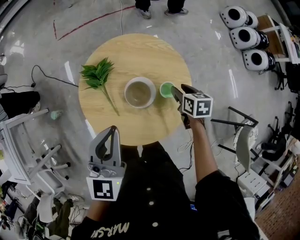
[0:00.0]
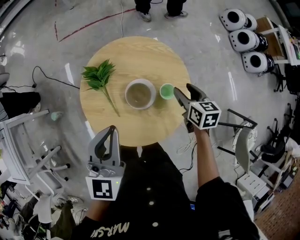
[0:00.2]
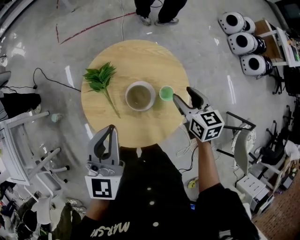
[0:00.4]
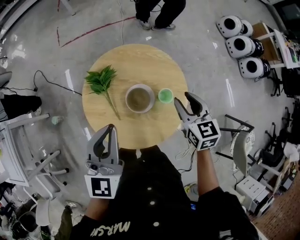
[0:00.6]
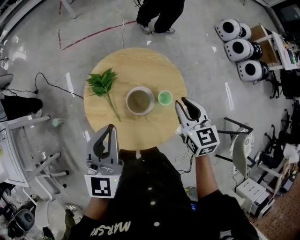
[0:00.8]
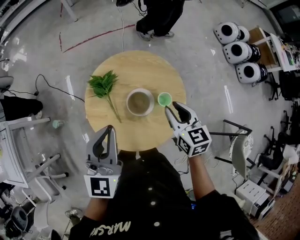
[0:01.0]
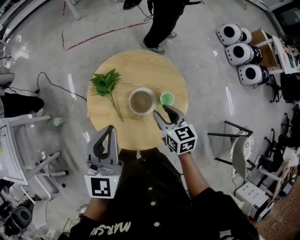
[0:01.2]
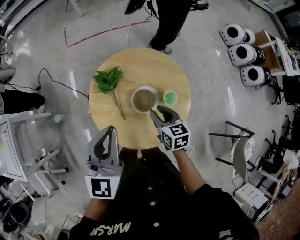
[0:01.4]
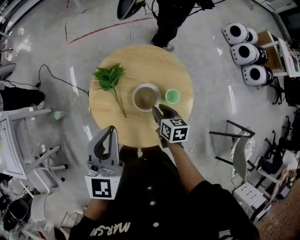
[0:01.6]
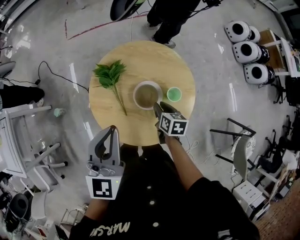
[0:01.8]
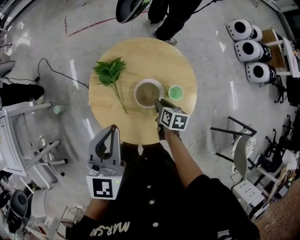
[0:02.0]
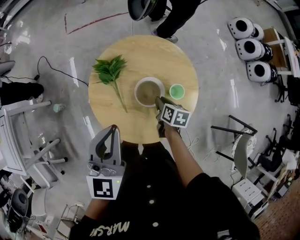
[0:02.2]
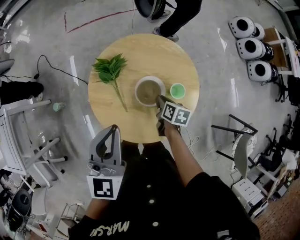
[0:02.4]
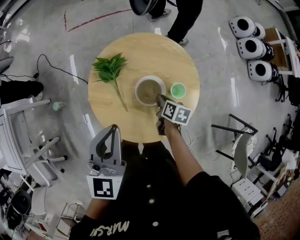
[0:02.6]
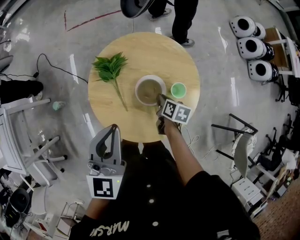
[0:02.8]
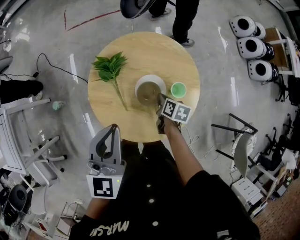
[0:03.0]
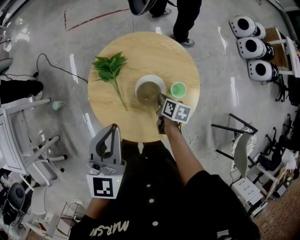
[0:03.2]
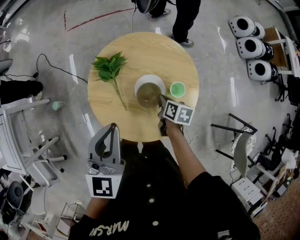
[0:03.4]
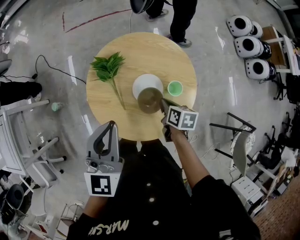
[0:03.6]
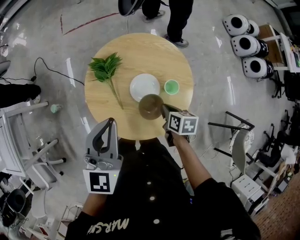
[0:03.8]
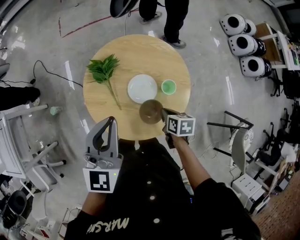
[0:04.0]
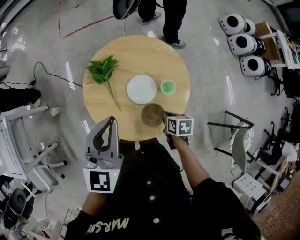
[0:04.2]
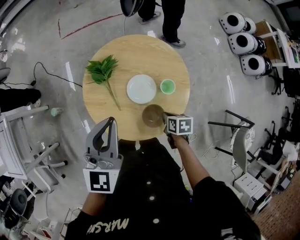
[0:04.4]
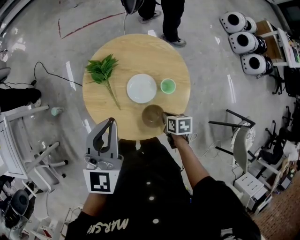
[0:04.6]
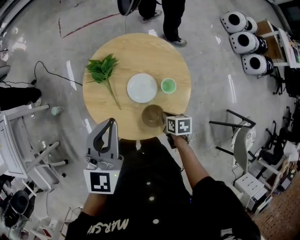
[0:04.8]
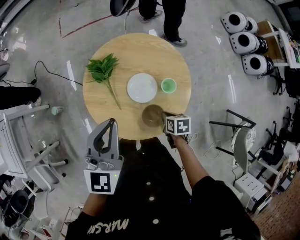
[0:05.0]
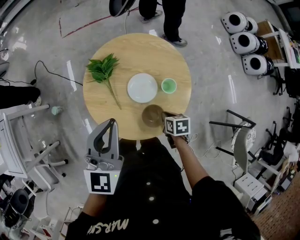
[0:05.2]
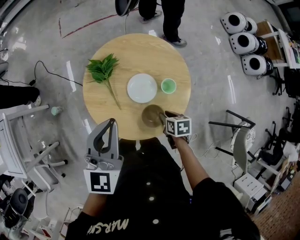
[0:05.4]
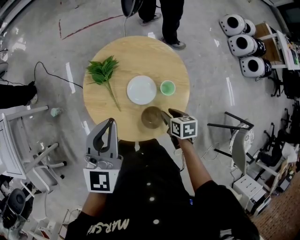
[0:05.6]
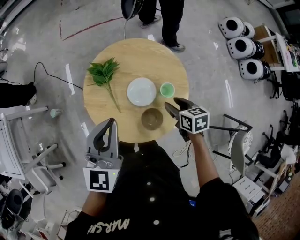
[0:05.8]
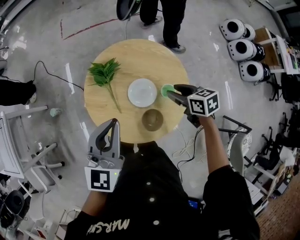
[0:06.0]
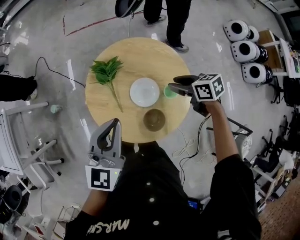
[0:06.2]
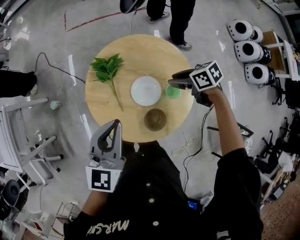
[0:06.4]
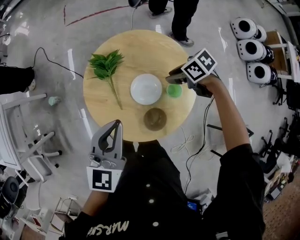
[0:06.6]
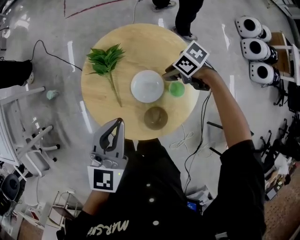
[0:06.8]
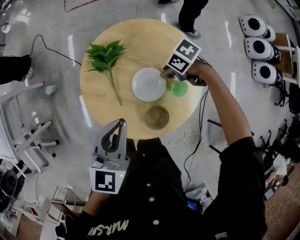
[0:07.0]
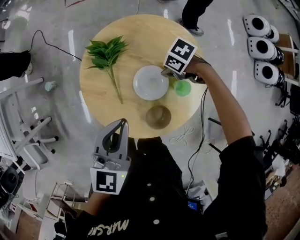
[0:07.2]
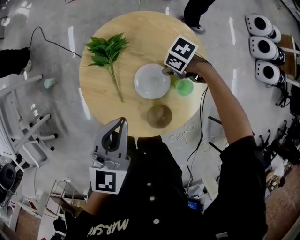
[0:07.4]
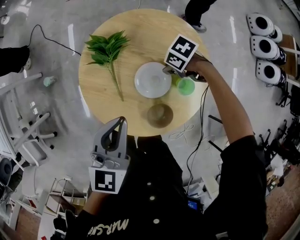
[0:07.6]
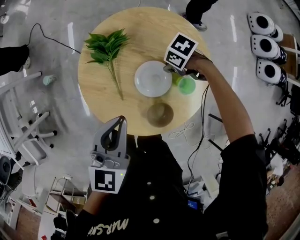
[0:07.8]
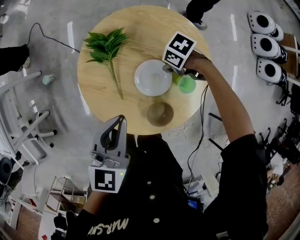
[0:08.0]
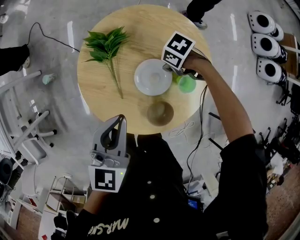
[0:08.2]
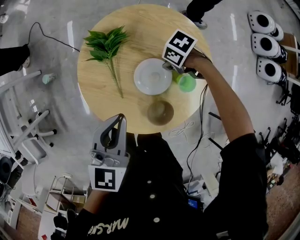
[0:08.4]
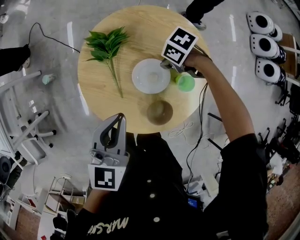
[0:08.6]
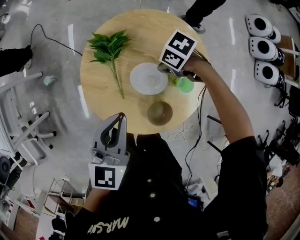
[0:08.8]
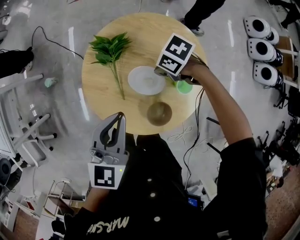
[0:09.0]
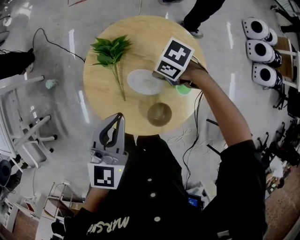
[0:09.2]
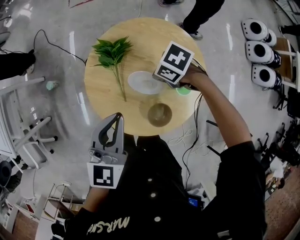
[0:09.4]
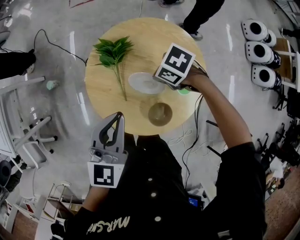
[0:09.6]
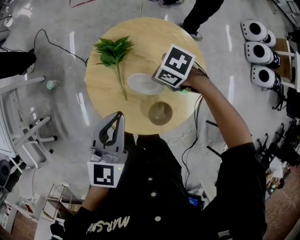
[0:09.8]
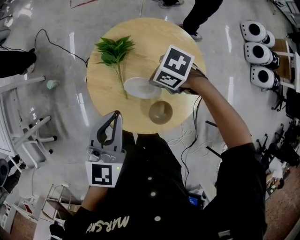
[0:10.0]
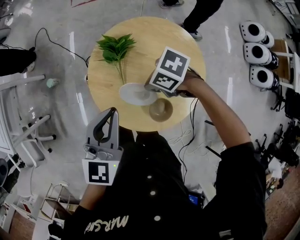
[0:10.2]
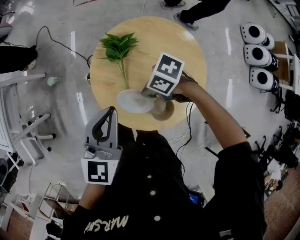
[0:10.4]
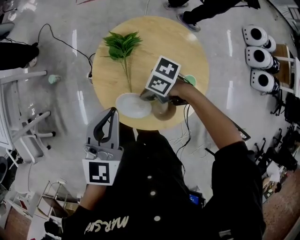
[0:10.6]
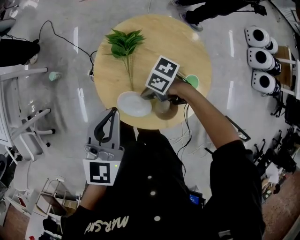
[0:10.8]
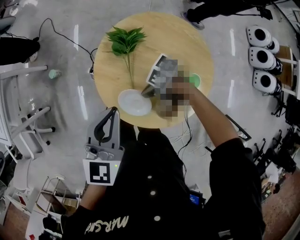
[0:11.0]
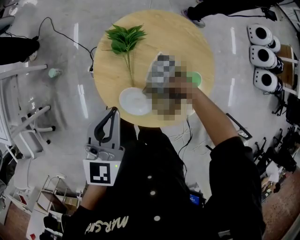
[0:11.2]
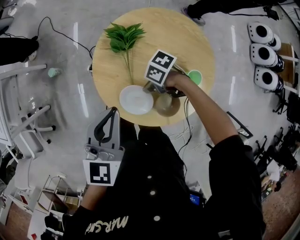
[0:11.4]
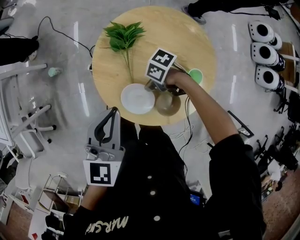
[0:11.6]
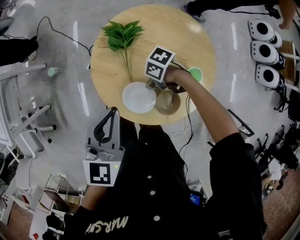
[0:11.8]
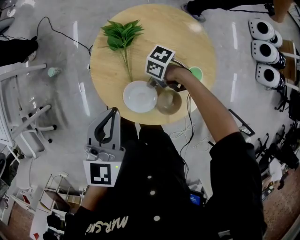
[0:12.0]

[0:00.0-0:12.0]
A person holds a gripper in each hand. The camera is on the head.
0:00.0 to 0:01.6: The left gripper ends up approximately 5 cm from where it was. Meanwhile the right gripper heads to the left and backward, covering some 15 cm, and reaches approximately 20 cm upward, then returns.
0:01.6 to 0:03.0: The right gripper travels downward by about 10 cm, swivels approximately 20 degrees, and closes up.
0:03.0 to 0:04.4: The right gripper shifts approximately 10 cm backward.
0:04.4 to 0:06.0: The right gripper shifts approximately 20 cm upward and forward, rotates about 30 degrees, and opens its fingers.
0:06.0 to 0:07.6: The right gripper goes about 20 cm downward, and rotates about 60 degrees; the left gripper is displaced downward by approximately 10 cm.
0:07.6 to 0:09.0: The right gripper shifts about 5 cm upward, and closes its fingers.
0:09.0 to 0:10.4: The left gripper shifts by about 5 cm. Meanwhile the right gripper shifts by some 15 cm.
0:10.4 to 0:12.0: The right gripper goes some 10 cm downward.

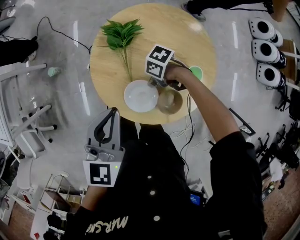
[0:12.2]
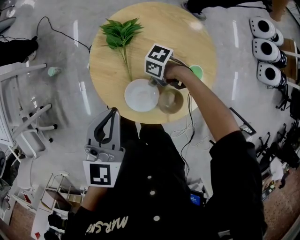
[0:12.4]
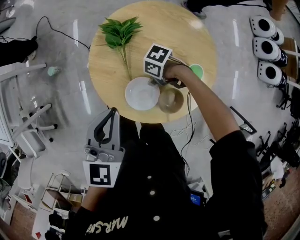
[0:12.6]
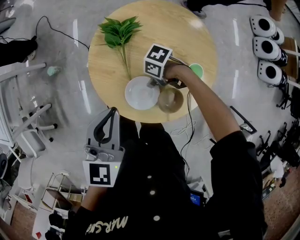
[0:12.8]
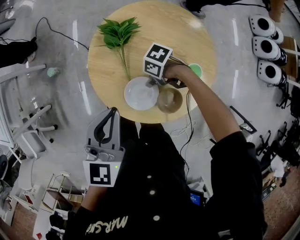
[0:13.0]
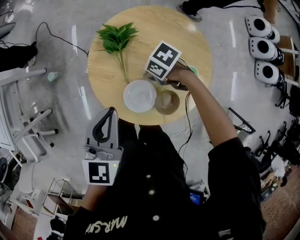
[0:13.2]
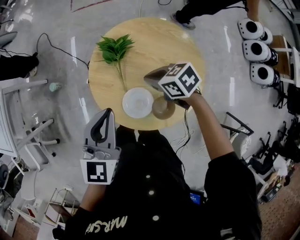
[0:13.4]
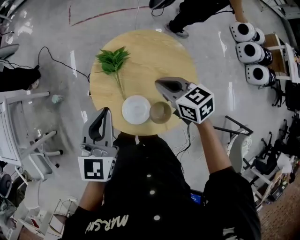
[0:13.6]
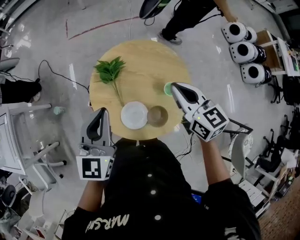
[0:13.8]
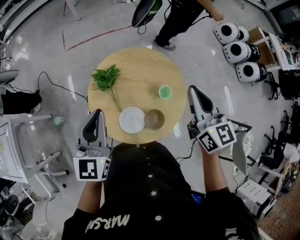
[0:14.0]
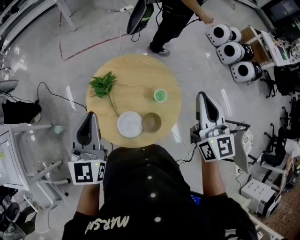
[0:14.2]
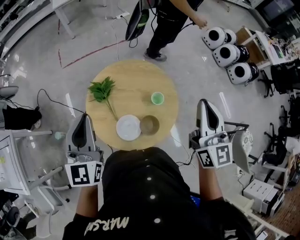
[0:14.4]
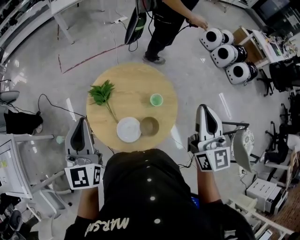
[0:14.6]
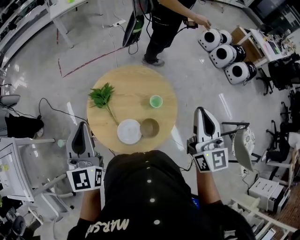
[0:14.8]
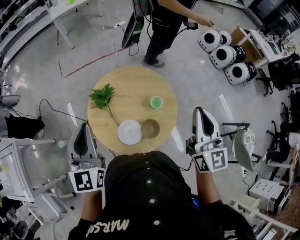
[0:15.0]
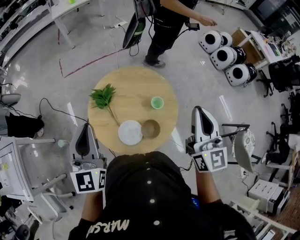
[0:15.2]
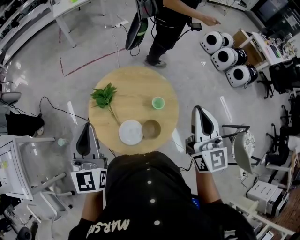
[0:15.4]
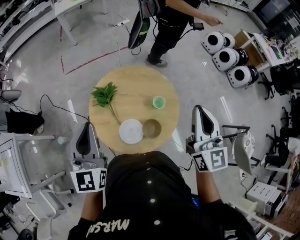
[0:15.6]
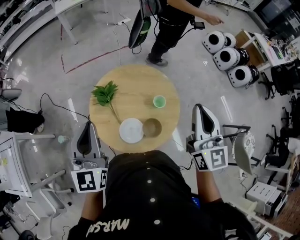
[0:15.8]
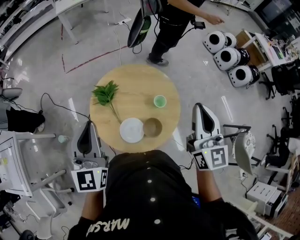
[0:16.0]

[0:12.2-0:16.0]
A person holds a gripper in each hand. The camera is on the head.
0:12.2 to 0:13.4: The right gripper travels upward by some 15 cm, turns by approximately 40 degrees, and opens, then closes once more.
0:13.4 to 0:14.8: The left gripper is displaced upward by roughly 15 cm, and changes its angle by about 20 degrees, while the right gripper goes approximately 30 cm upward, and points its fingers about 50 degrees further upward.
0:14.8 to 0:16.0: The grippers make only small movements.

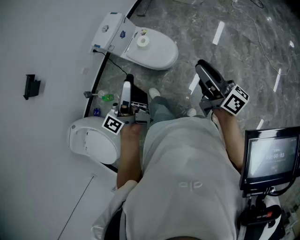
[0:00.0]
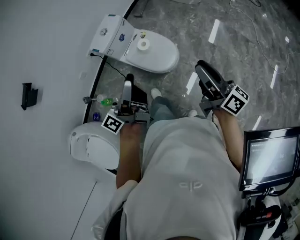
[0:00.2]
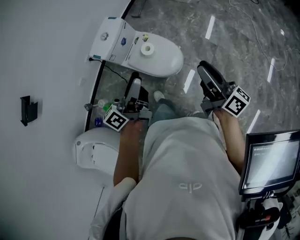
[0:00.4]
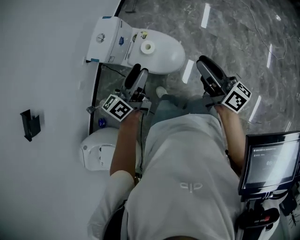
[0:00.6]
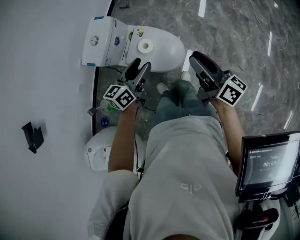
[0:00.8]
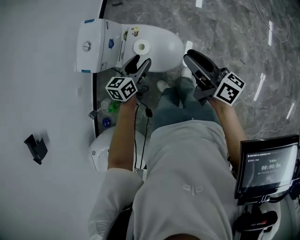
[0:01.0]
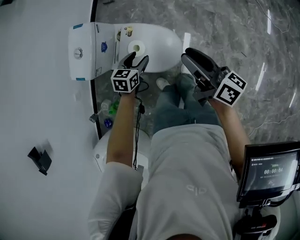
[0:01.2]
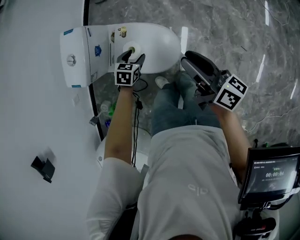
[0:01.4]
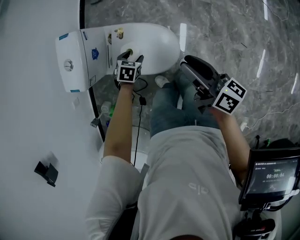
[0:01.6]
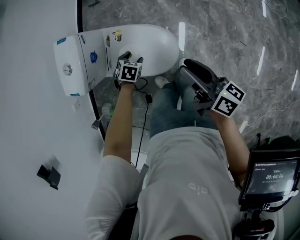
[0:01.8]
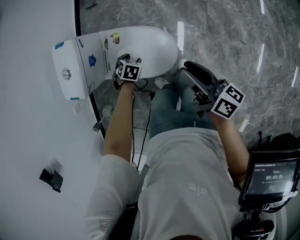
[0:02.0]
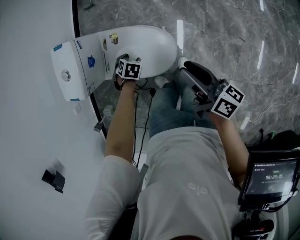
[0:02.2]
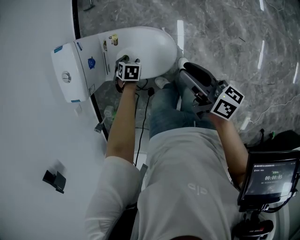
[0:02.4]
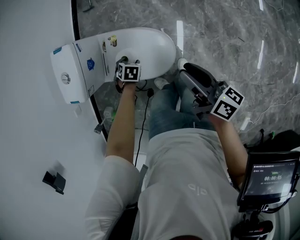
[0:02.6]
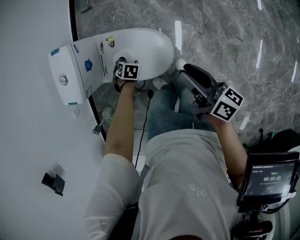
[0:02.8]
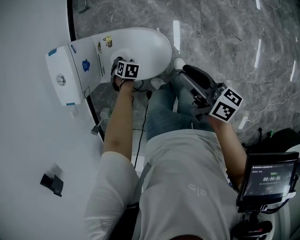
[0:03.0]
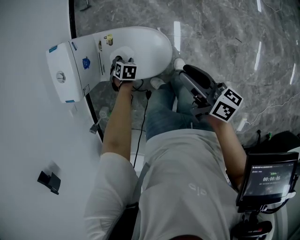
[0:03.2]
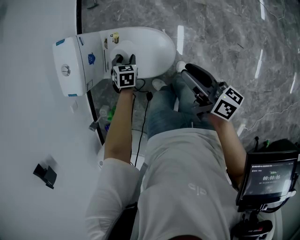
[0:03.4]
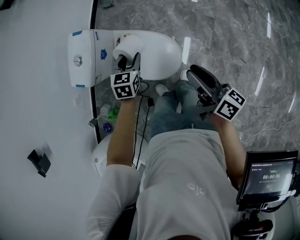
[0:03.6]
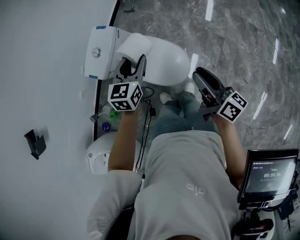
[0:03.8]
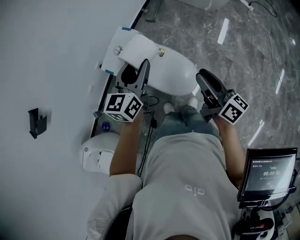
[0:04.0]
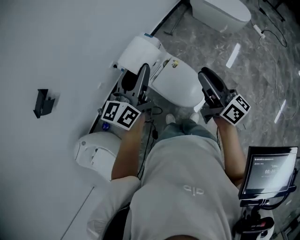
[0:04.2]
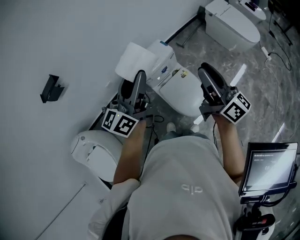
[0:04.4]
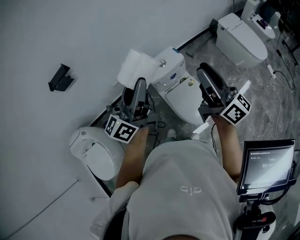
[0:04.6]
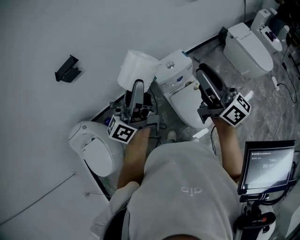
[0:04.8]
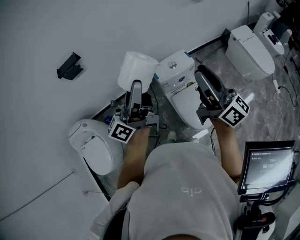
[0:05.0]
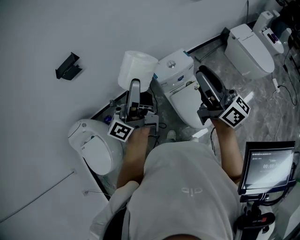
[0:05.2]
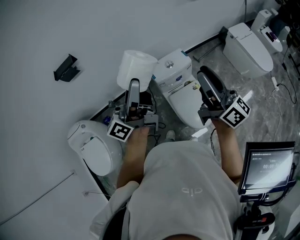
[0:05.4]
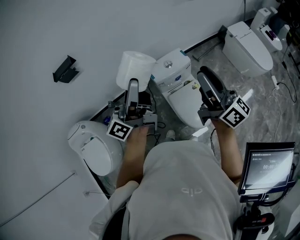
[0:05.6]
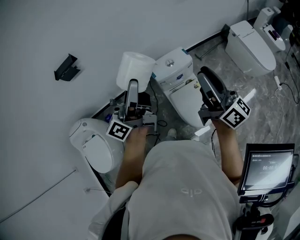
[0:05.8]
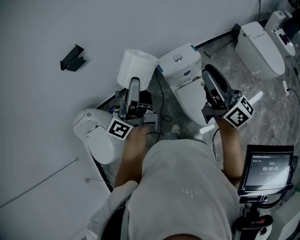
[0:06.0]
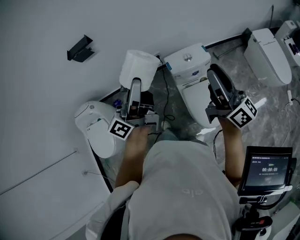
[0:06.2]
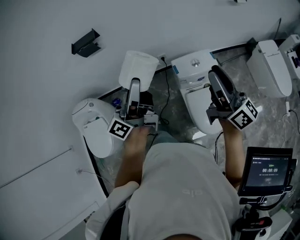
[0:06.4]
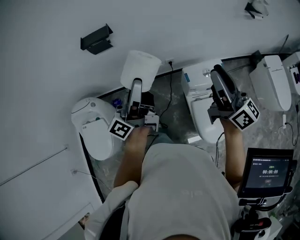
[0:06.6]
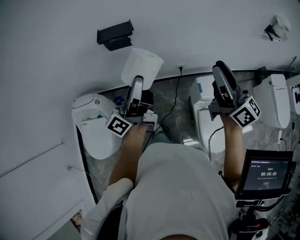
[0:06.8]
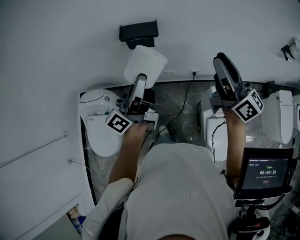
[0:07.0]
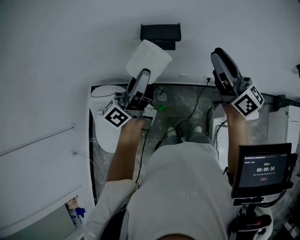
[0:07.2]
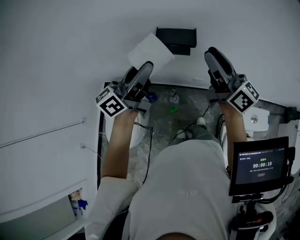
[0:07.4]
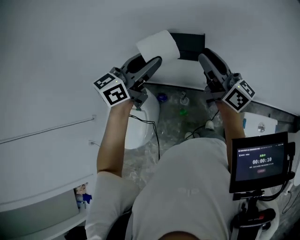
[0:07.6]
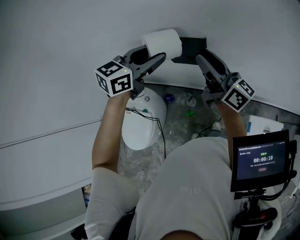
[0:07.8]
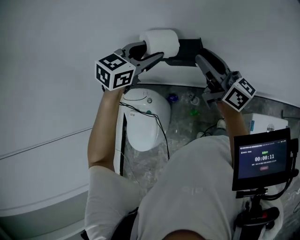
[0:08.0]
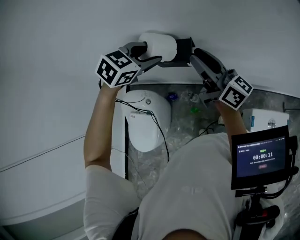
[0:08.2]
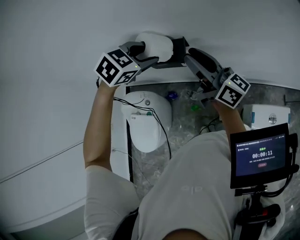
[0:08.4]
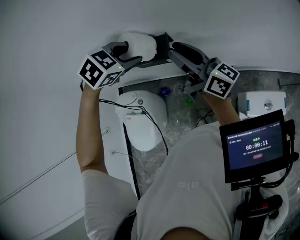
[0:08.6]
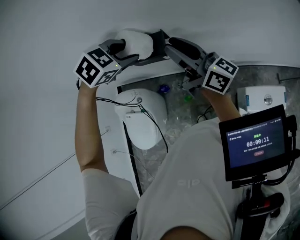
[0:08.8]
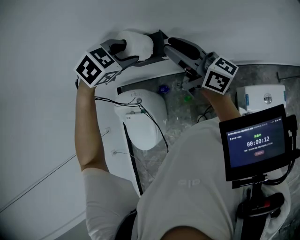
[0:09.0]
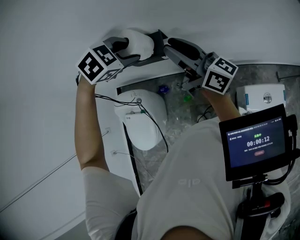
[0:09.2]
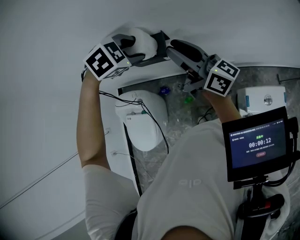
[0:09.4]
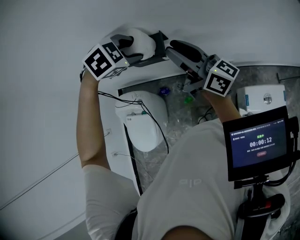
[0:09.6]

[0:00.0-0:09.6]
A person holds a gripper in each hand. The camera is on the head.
0:00.0 to 0:01.6: The right gripper swings up and down, approximately 15 cm each way, with 2 reversals. The left gripper swings up and down, some 20 cm each way, with 2 reversals, and angles its fingers downward, by roughly 70 degrees.
0:01.6 to 0:03.2: The grippers make only small movements.
0:03.2 to 0:04.8: The left gripper moves up and down over about 30 cm, changing direction 2 times, and angles its fingers upward, by approximately 70 degrees, while the right gripper heads upward, covering some 5 cm.
0:04.8 to 0:06.4: The left gripper heads to the left, covering approximately 5 cm.
0:06.4 to 0:08.0: The left gripper shifts by some 25 cm, and tilts its fingers roughly 50 degrees downward.
0:08.0 to 0:09.6: The left gripper goes roughly 5 cm downward, and tilts its fingers approximately 30 degrees downward.
